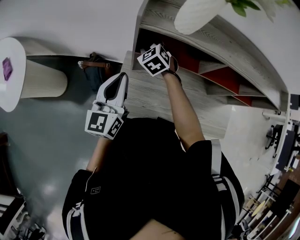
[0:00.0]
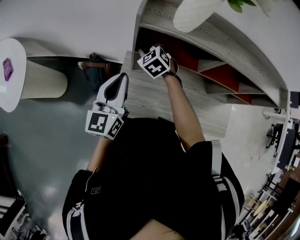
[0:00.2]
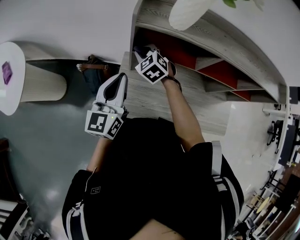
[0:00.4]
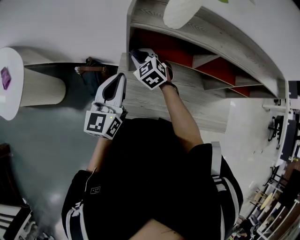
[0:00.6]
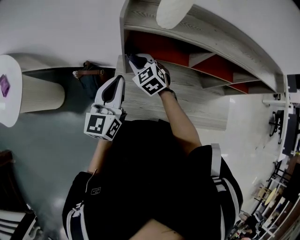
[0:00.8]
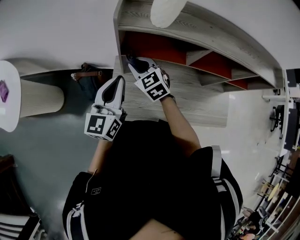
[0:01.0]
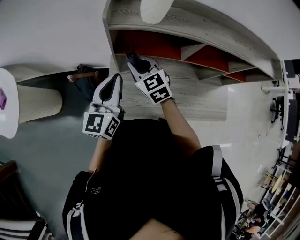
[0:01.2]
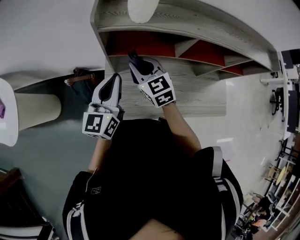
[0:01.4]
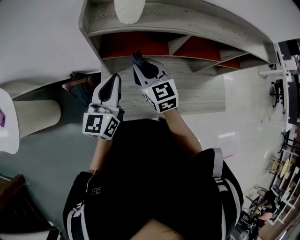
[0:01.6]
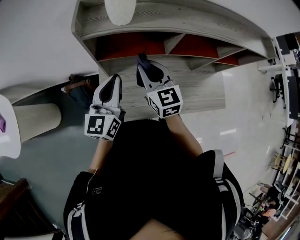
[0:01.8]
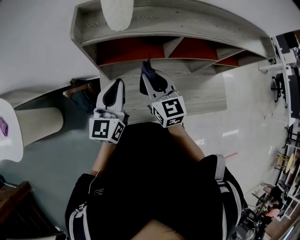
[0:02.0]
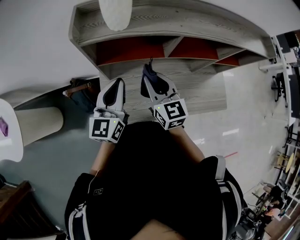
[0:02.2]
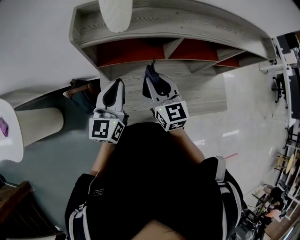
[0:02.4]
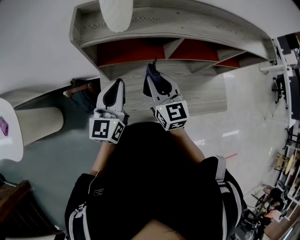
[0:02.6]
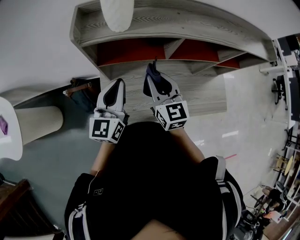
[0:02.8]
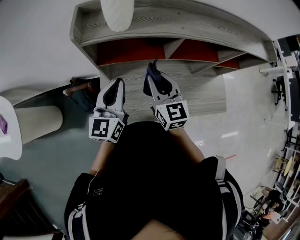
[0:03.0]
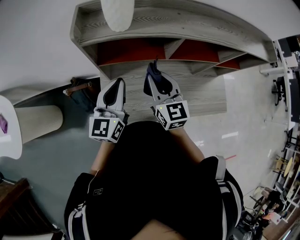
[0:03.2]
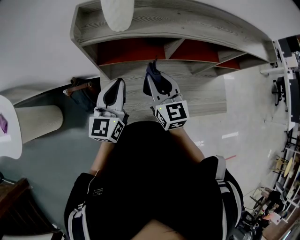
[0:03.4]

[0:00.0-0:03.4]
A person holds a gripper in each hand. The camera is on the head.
0:00.0 to 0:01.6: The left gripper moves to the right, roughly 10 cm. The right gripper is displaced backward, to the right and upward by about 20 cm, and changes its angle by approximately 40 degrees.
0:01.6 to 0:03.4: The right gripper goes roughly 5 cm to the right.

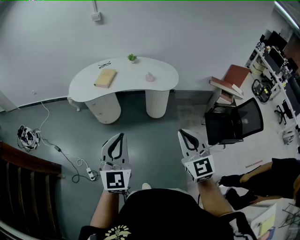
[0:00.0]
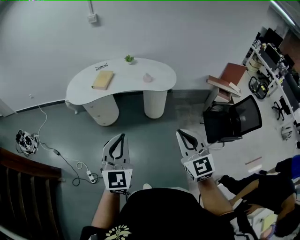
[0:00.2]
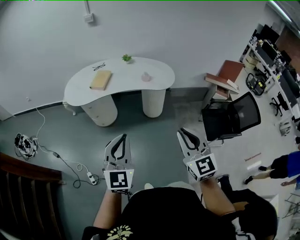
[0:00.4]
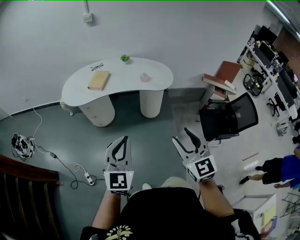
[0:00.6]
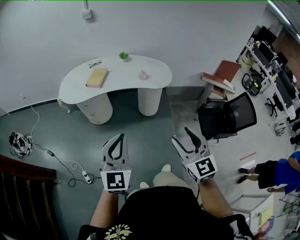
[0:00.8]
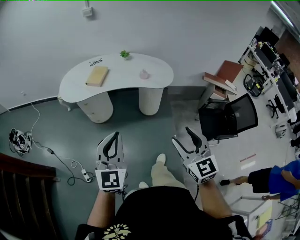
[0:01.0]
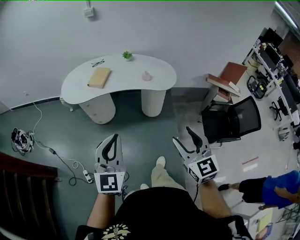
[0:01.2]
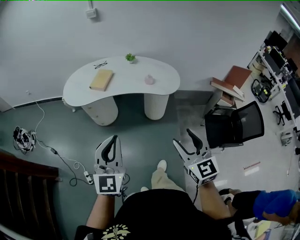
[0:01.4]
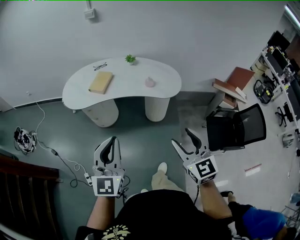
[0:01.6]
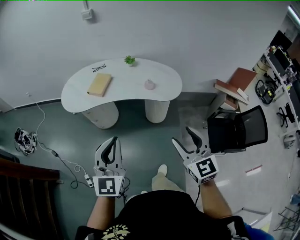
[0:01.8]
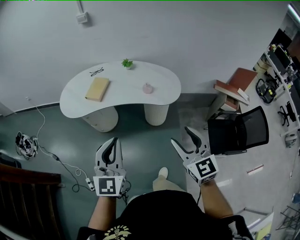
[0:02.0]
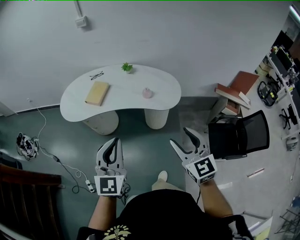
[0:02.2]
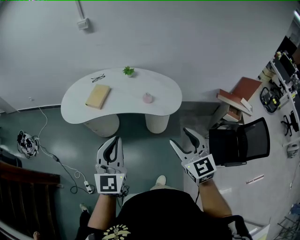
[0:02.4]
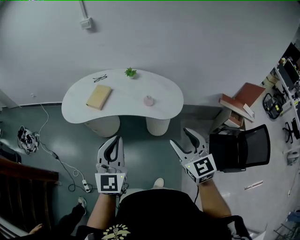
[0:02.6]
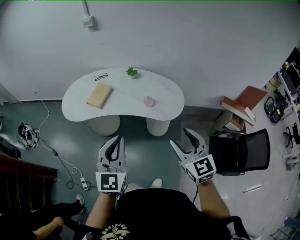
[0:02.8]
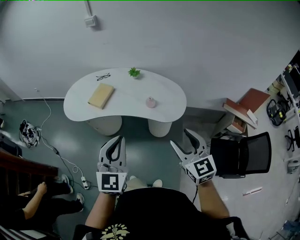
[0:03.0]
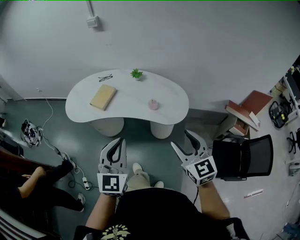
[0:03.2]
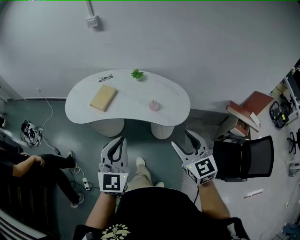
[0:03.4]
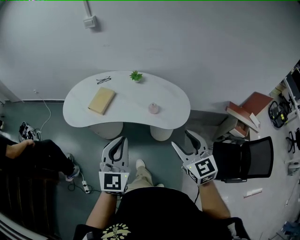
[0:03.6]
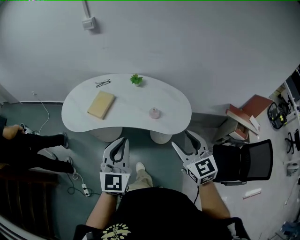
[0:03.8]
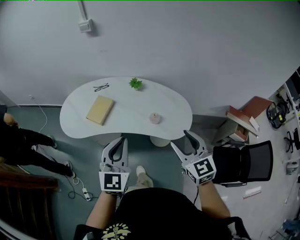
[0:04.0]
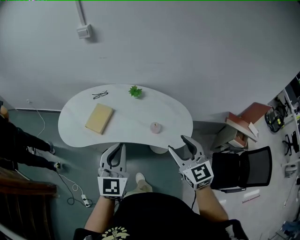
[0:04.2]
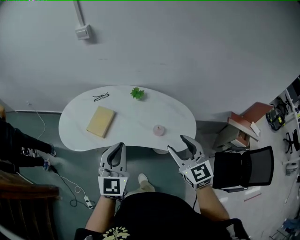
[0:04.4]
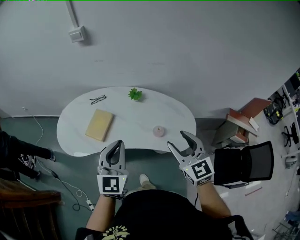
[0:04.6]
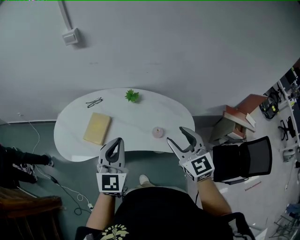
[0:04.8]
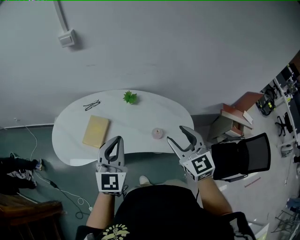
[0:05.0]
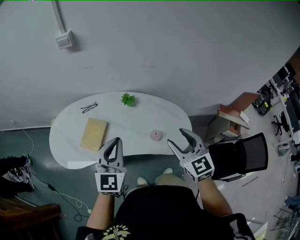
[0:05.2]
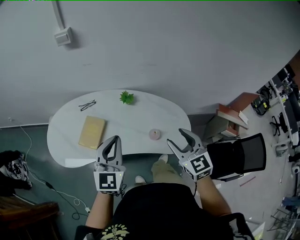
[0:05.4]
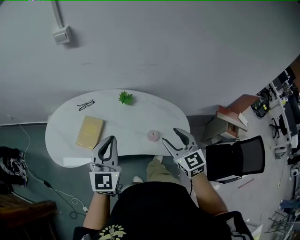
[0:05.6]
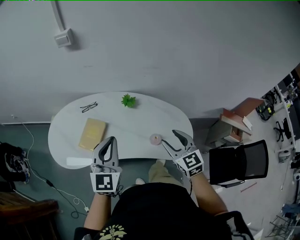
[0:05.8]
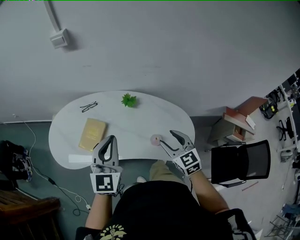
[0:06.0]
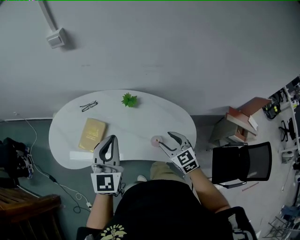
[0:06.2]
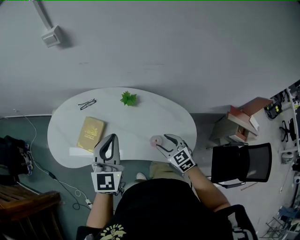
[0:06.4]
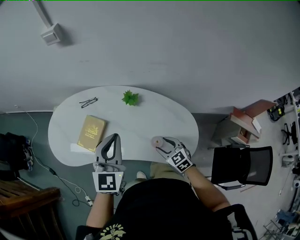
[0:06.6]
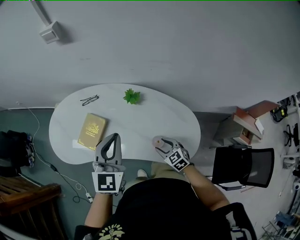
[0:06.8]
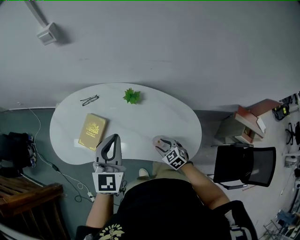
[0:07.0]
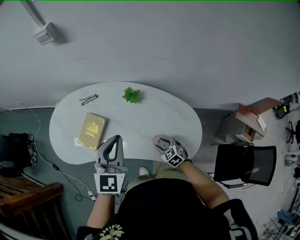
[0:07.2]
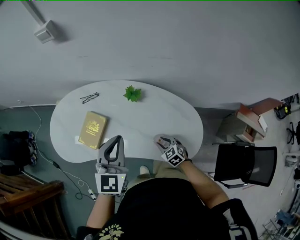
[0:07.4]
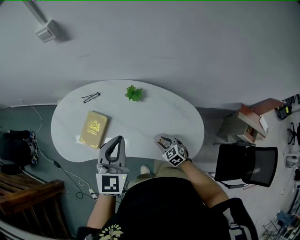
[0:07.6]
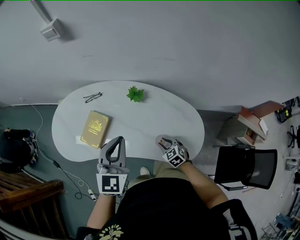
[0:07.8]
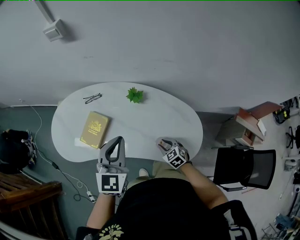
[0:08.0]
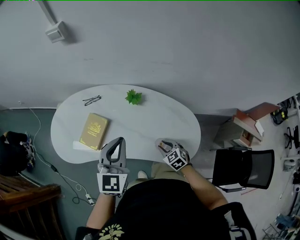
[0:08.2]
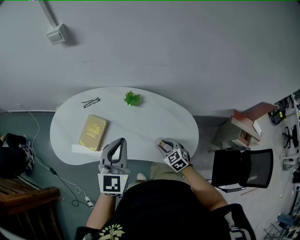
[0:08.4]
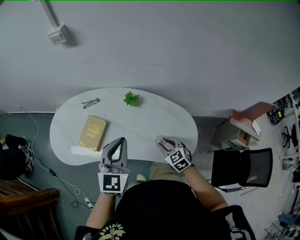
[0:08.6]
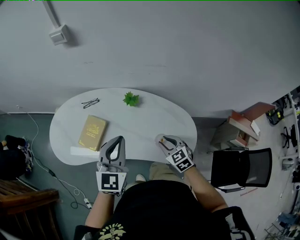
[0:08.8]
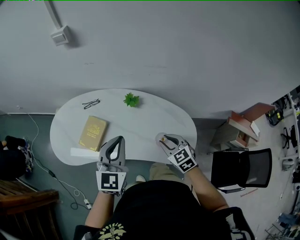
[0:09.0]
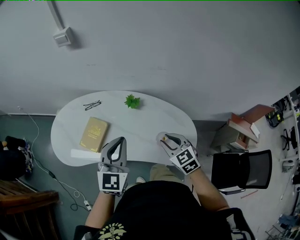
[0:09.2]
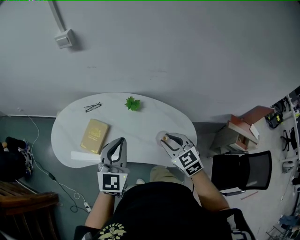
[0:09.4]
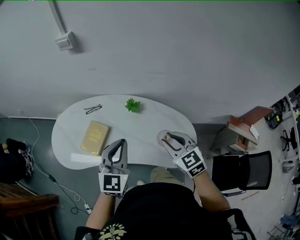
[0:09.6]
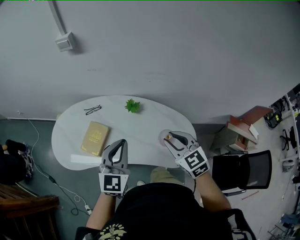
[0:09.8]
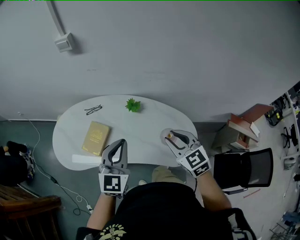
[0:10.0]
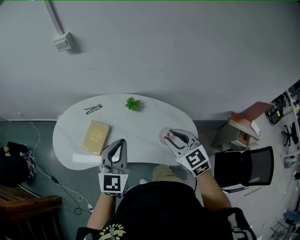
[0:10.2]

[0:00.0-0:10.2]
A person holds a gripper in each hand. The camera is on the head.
0:00.0 to 0:01.4: Both grippers travel together forward, roughly 10 cm. The right gripper opens up.
0:01.4 to 0:03.0: Both grippers move forward and to the right, approximately 25 cm.
0:03.0 to 0:04.4: Both grippers travel together forward, some 25 cm.
0:04.4 to 0:05.8: The left gripper shifts about 15 cm forward. Meanwhile the right gripper travels forward and downward by about 15 cm.
0:05.8 to 0:07.2: The left gripper is displaced forward and to the right by about 10 cm. Meanwhile the right gripper goes roughly 30 cm downward, and turns by approximately 30 degrees.
0:07.2 to 0:08.8: The right gripper shifts approximately 15 cm upward, while the left gripper ends up approximately 5 cm from where it was.
0:08.8 to 0:10.2: The right gripper moves upward, about 15 cm.

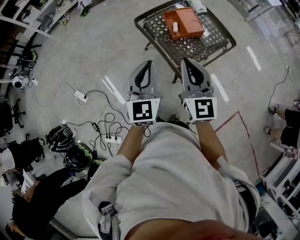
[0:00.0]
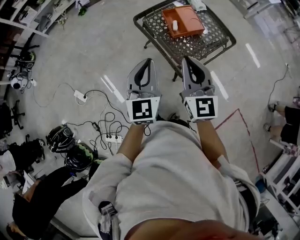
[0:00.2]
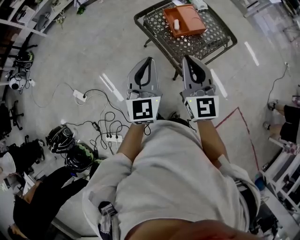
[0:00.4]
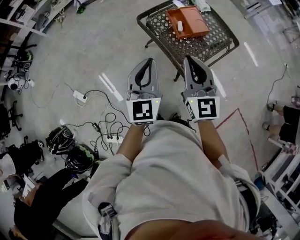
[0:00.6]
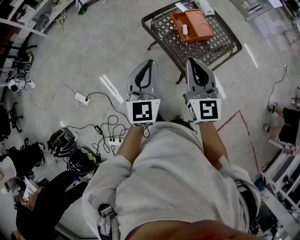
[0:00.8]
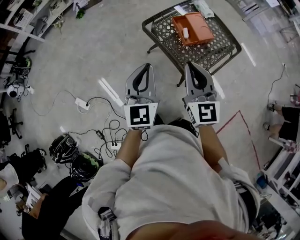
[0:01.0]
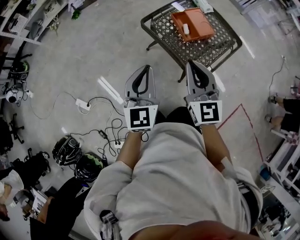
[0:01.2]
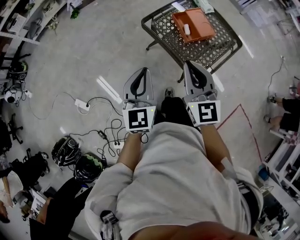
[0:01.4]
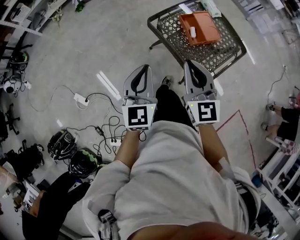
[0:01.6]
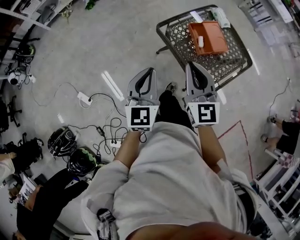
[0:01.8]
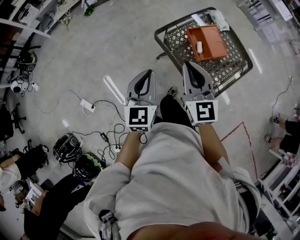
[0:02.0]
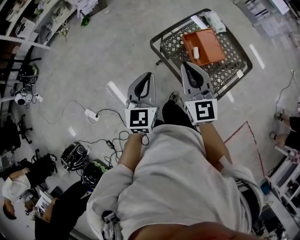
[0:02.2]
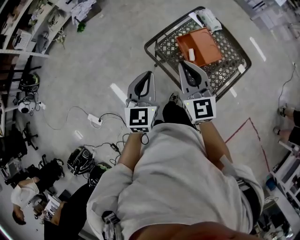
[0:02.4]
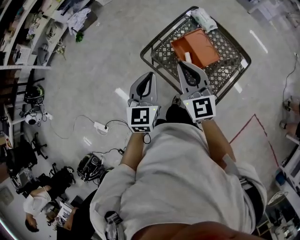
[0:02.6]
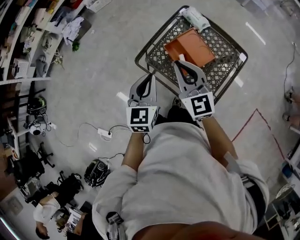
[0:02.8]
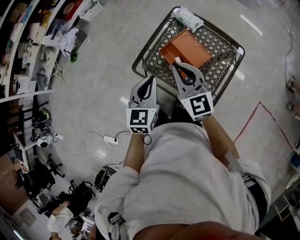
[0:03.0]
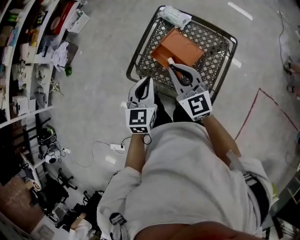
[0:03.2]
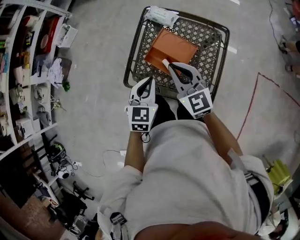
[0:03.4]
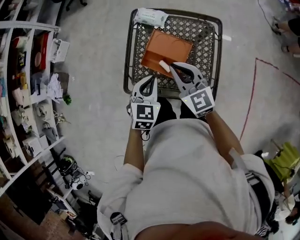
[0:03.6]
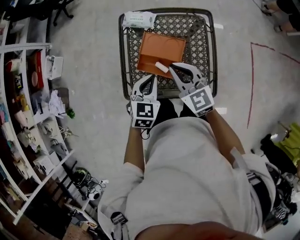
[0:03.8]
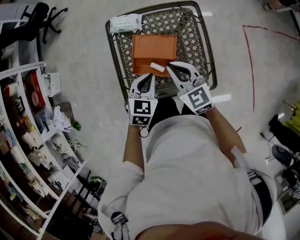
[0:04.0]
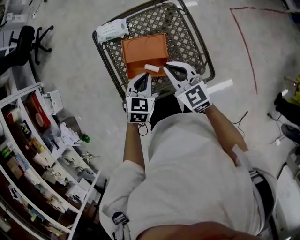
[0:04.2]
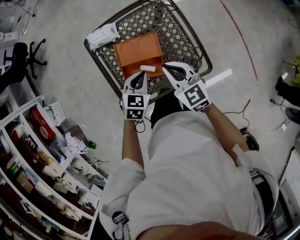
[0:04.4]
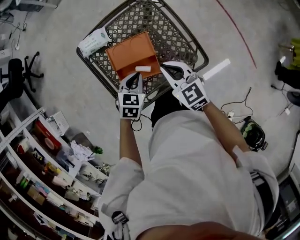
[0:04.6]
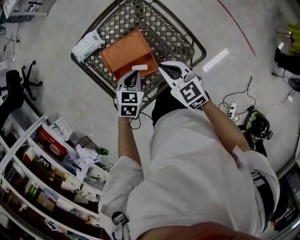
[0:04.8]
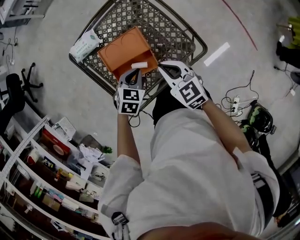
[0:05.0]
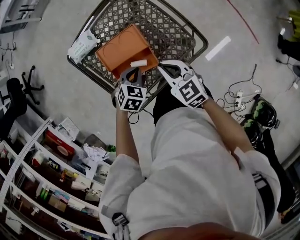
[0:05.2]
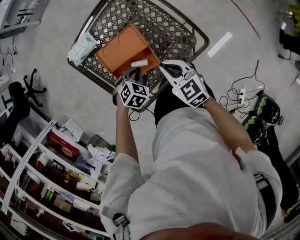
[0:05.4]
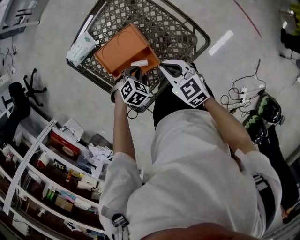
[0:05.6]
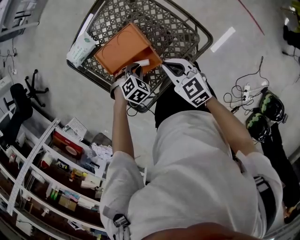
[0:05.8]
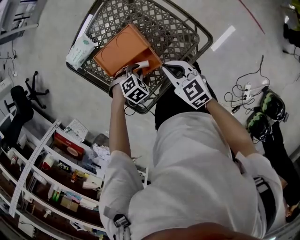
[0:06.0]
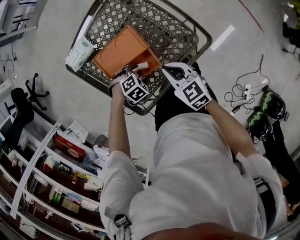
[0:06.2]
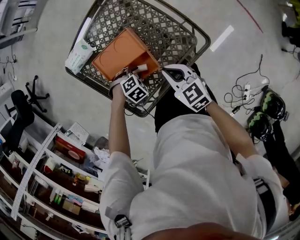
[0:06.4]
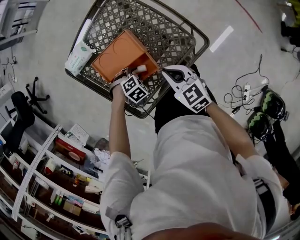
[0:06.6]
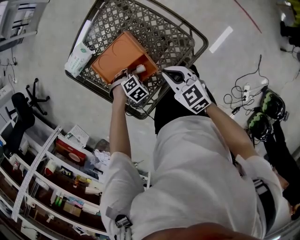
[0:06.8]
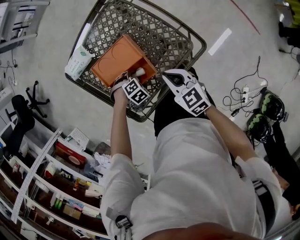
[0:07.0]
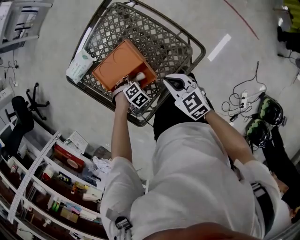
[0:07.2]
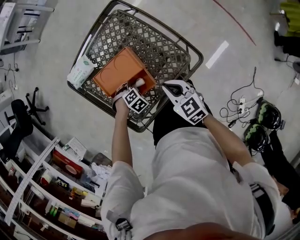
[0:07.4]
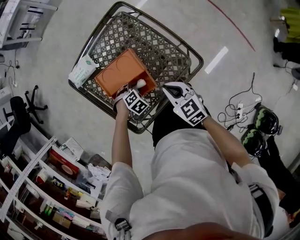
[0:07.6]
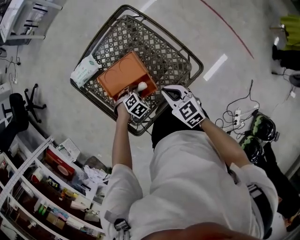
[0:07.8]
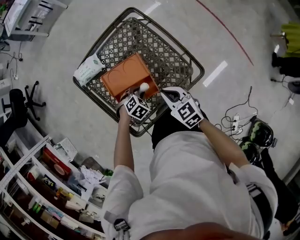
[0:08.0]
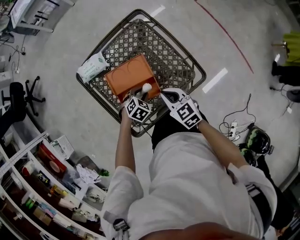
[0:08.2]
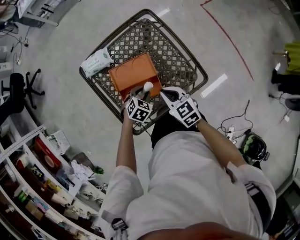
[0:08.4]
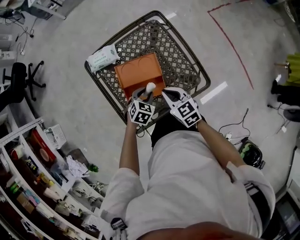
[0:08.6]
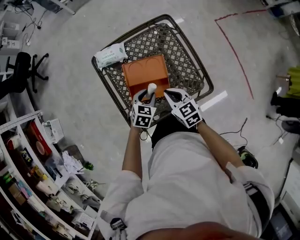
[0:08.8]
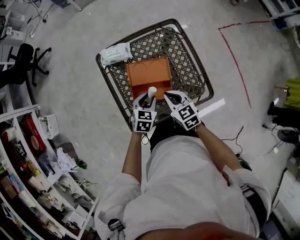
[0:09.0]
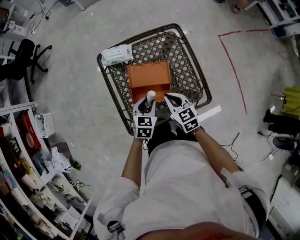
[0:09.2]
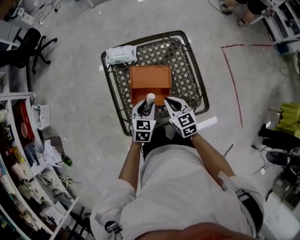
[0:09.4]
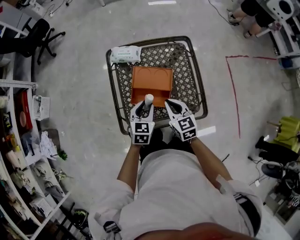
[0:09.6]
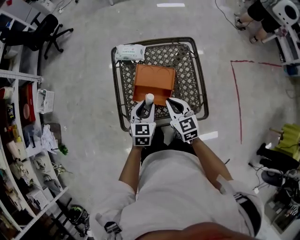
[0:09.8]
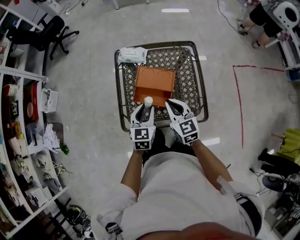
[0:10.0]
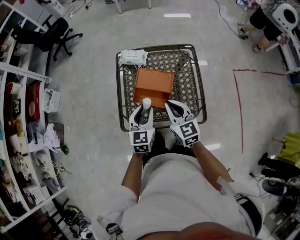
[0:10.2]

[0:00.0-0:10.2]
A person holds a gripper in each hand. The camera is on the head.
0:00.0 to 0:01.4: Both grippers travel together to the left and forward, roughly 15 cm.
0:01.4 to 0:03.0: The right gripper shifts roughly 30 cm forward. The left gripper is displaced forward and to the right by roughly 30 cm, and rotates approximately 30 degrees.
0:03.0 to 0:04.4: The left gripper ends up roughly 20 cm from where it was, and swivels some 70 degrees. Meanwhile the right gripper goes approximately 10 cm downward, and rotates some 50 degrees.
0:04.4 to 0:05.8: Both grippers move downward, about 15 cm. The left gripper rotates around the line of its fingers by about 40 degrees, clockwise from behind. Meanwhile the right gripper turns by some 20 degrees.
0:05.8 to 0:07.2: The left gripper heads downward, covering about 5 cm, and opens.
0:07.2 to 0:08.8: The left gripper heads upward, covering some 15 cm, and twists approximately 50 degrees counterclockwise, seen from behind. The right gripper changes place by roughly 10 cm.
0:08.8 to 0:10.2: The right gripper goes some 10 cm upward, and swivels some 20 degrees. Meanwhile the left gripper shifts some 15 cm upward and backward, and swivels some 40 degrees.
